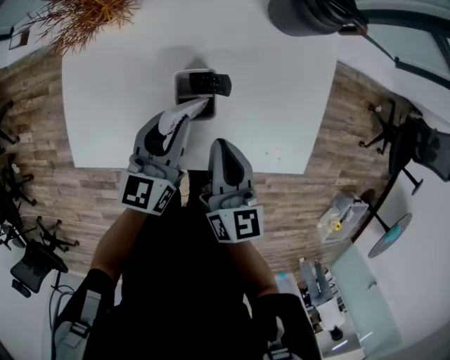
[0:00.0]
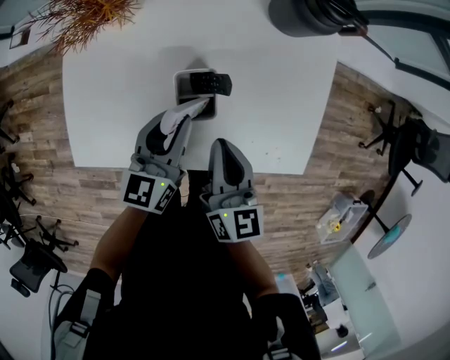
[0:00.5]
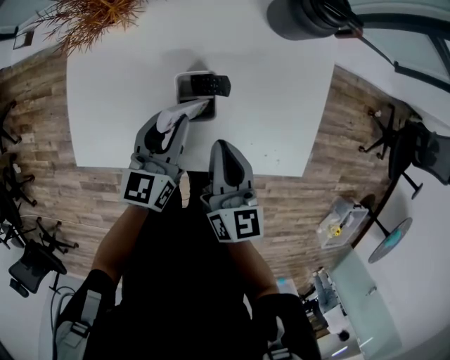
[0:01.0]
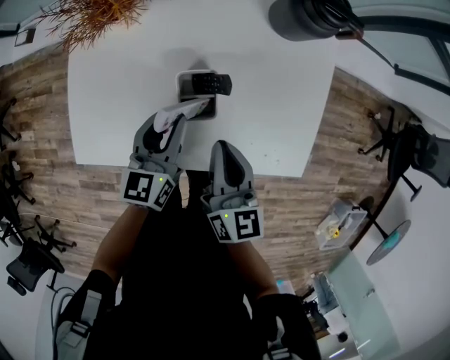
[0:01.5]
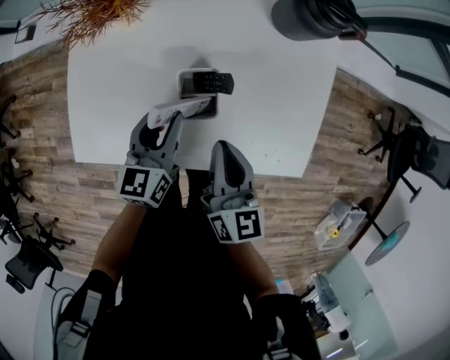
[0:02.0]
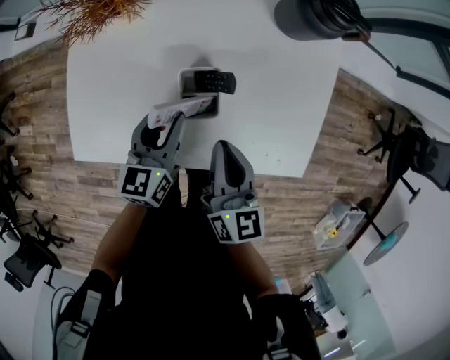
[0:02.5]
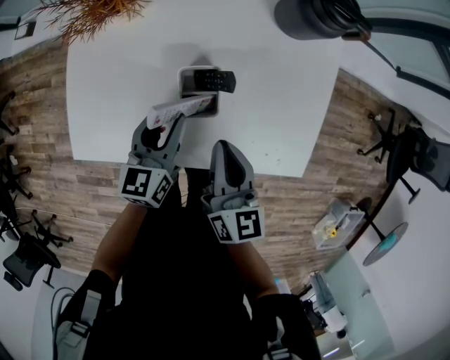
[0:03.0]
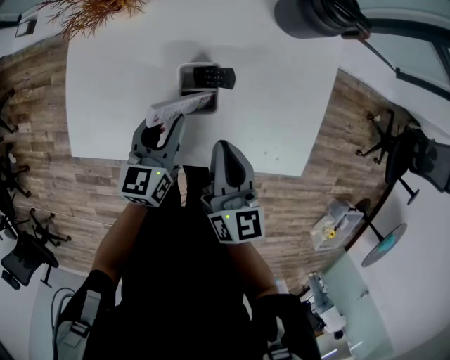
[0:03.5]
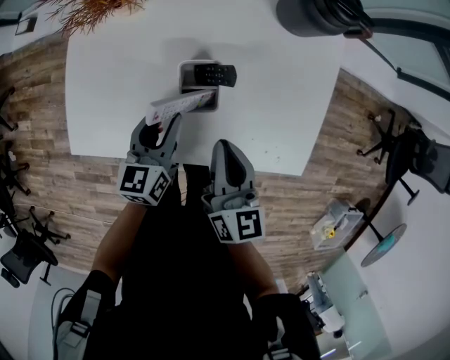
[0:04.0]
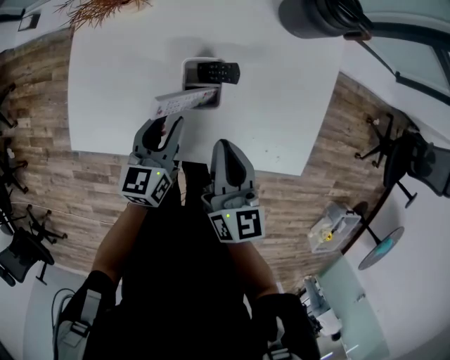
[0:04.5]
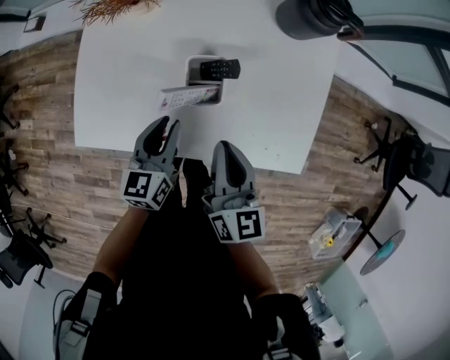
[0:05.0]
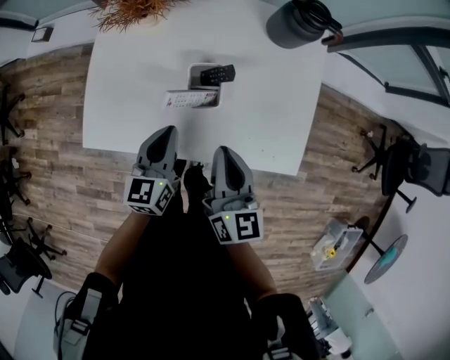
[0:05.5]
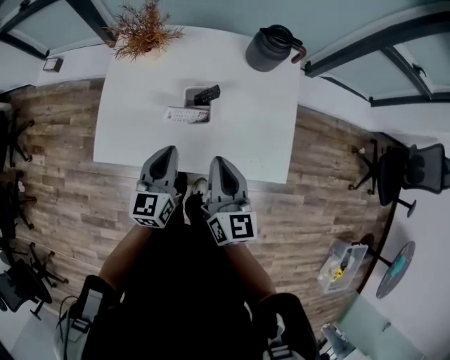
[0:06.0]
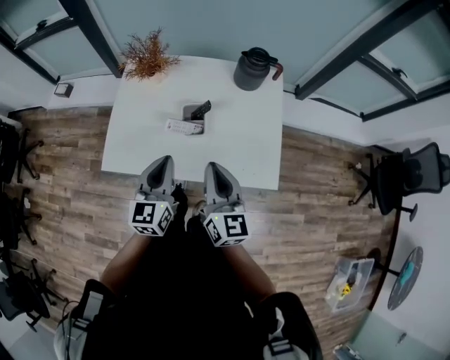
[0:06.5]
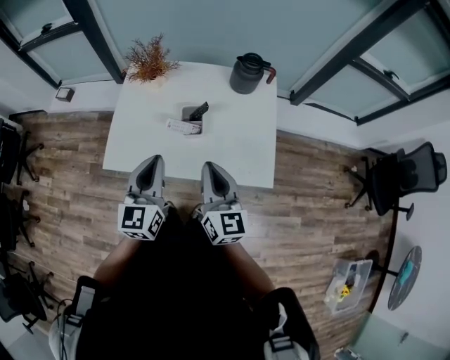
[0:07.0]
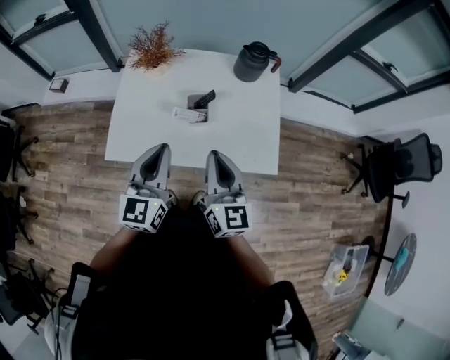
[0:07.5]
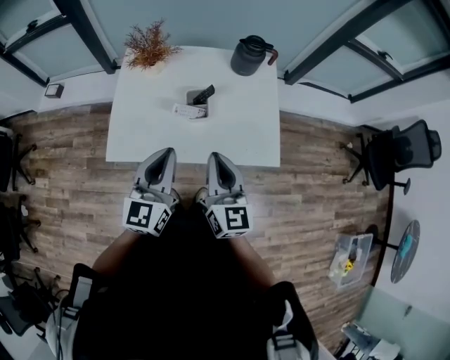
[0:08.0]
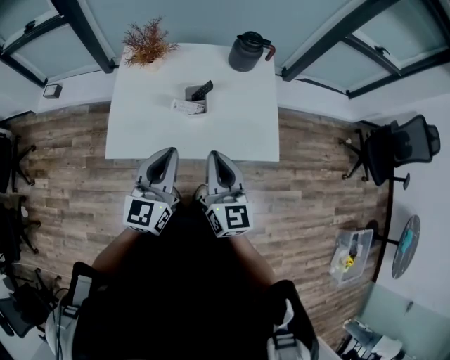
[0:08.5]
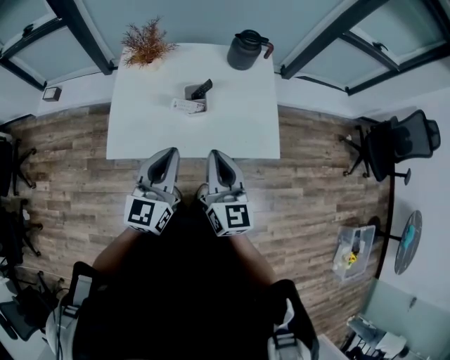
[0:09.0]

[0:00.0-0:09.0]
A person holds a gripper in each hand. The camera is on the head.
0:00.0 to 0:02.0: The grippers stay close to where they were, moving slightly.
0:02.0 to 0:04.5: The left gripper moves some 5 cm.
0:04.5 to 0:07.0: Both grippers move upward and backward, approximately 25 cm. The left gripper turns by some 30 degrees, and closes its fingers, while the right gripper changes its angle by about 20 degrees.
0:07.0 to 0:09.0: The right gripper ends up some 5 cm from where it was.

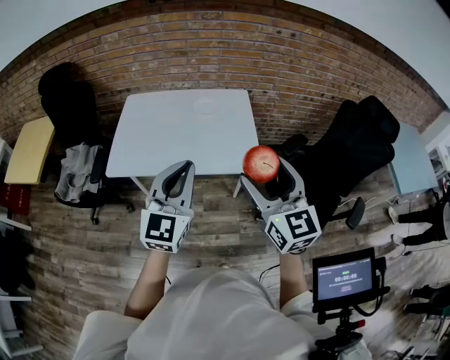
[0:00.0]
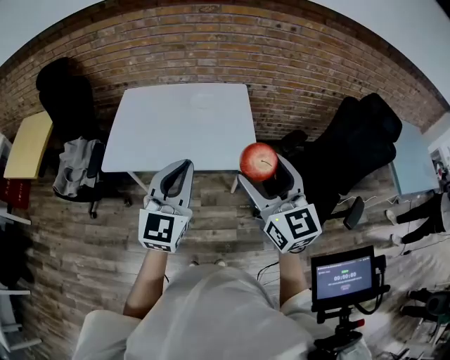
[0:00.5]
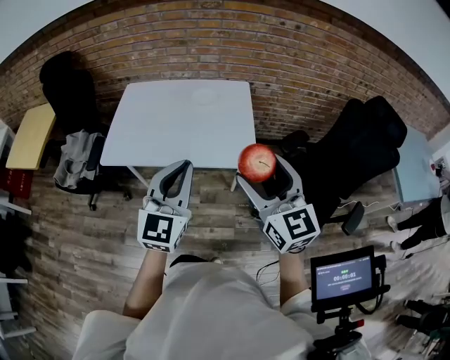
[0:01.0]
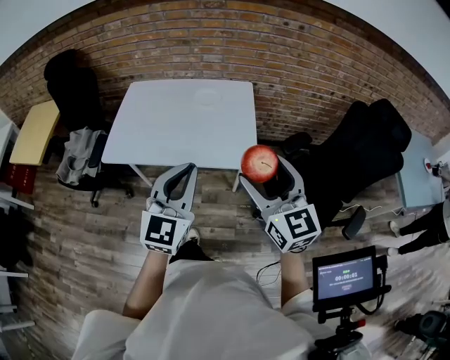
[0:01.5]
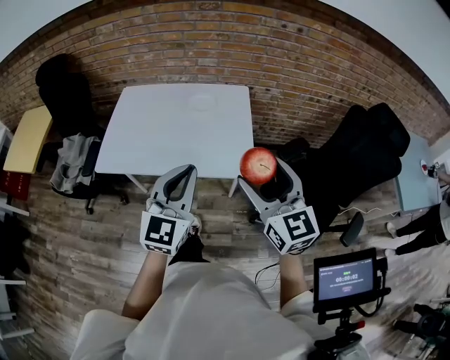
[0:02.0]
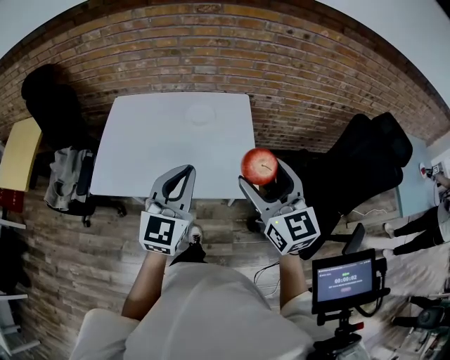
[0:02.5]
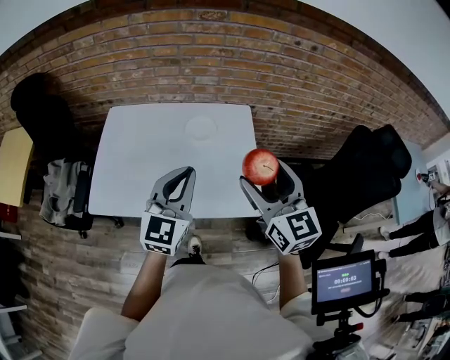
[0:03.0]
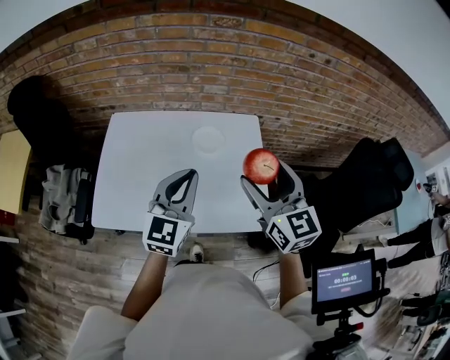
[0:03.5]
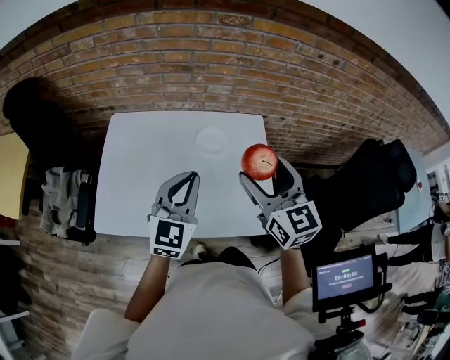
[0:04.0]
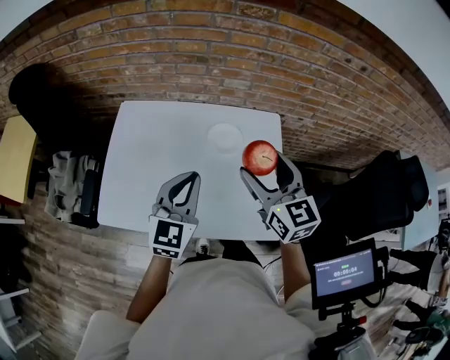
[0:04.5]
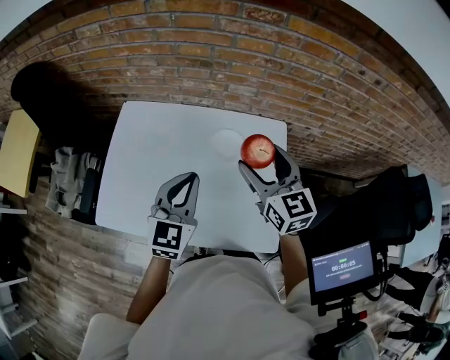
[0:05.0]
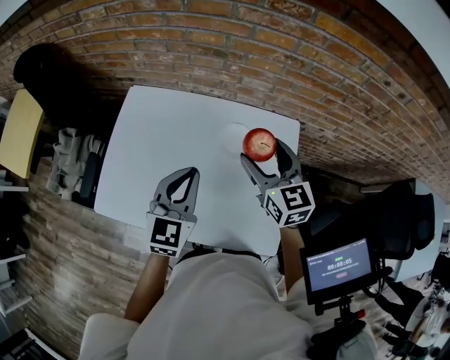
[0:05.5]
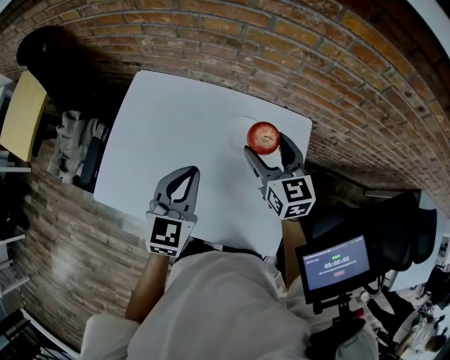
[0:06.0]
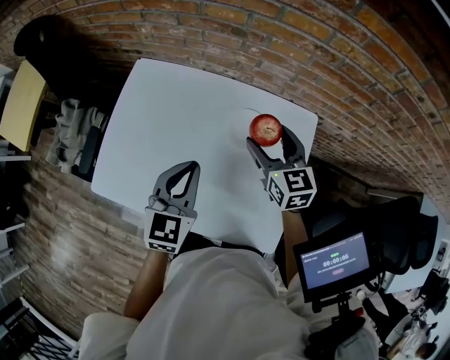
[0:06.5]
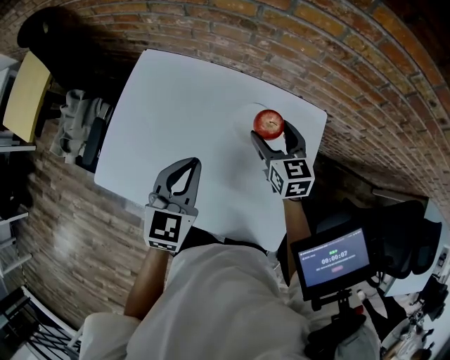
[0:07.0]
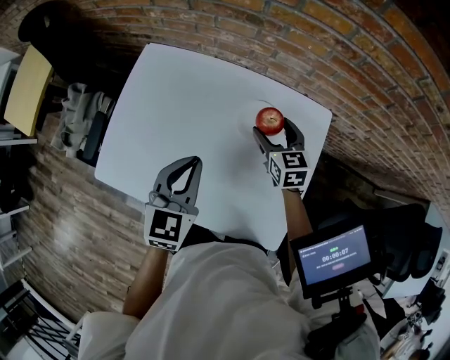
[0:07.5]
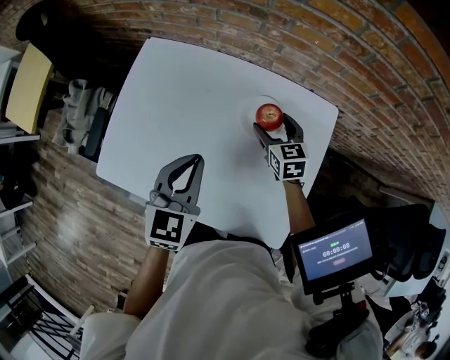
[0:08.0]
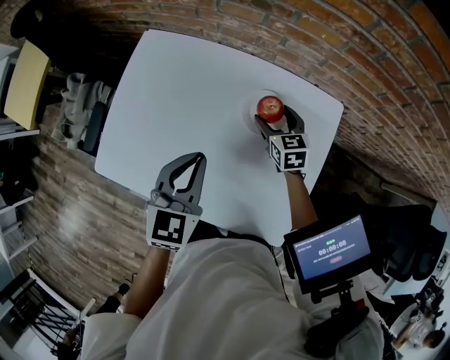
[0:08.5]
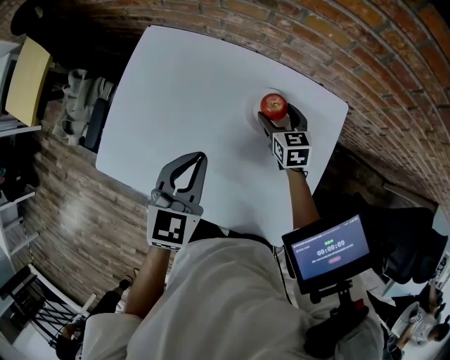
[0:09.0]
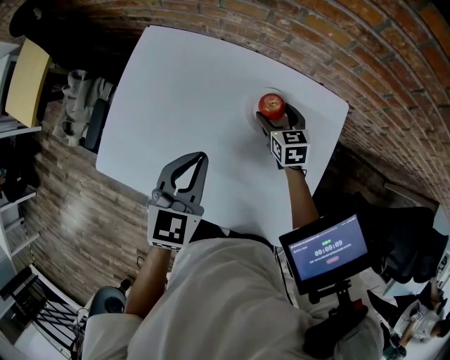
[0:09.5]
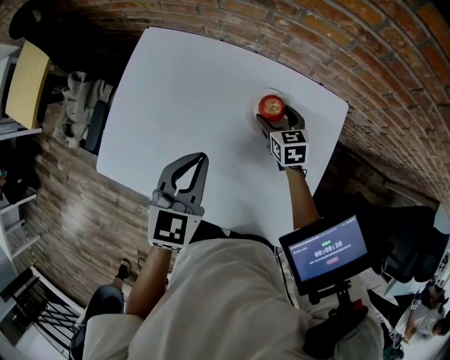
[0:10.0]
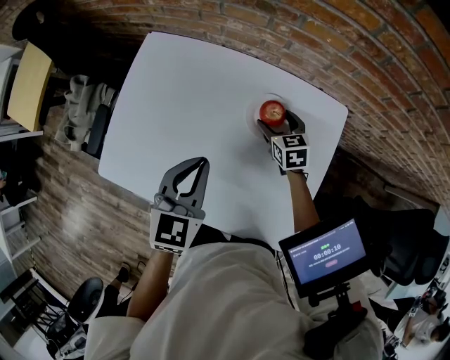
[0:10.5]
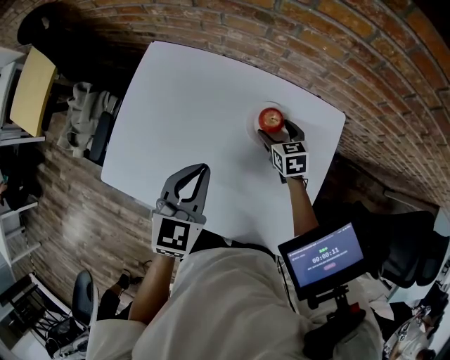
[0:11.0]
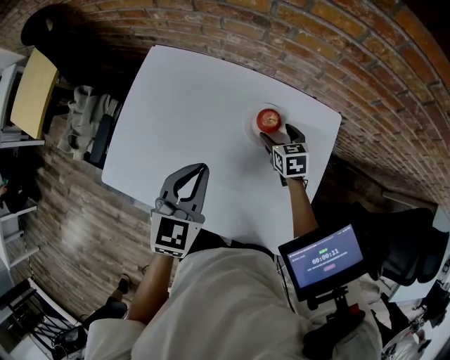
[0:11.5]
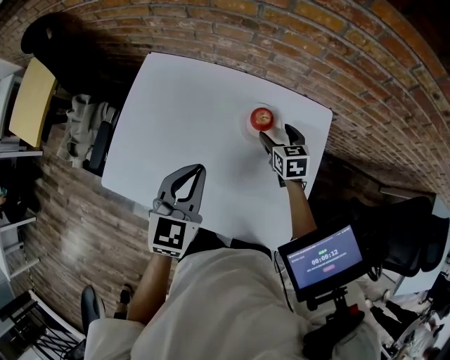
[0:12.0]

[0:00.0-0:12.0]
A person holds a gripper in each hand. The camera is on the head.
0:00.0 to 0:02.0: The right gripper moves forward and to the right, roughly 10 cm, while the left gripper goes roughly 5 cm to the right.
0:02.0 to 0:04.0: Both grippers travel together forward, roughly 30 cm.
0:04.0 to 0:06.0: The right gripper travels forward and downward by approximately 25 cm. The left gripper shifts roughly 10 cm forward and downward, and changes its angle by roughly 20 degrees.
0:06.0 to 0:08.0: The right gripper heads downward, covering roughly 15 cm.
0:08.0 to 0:10.0: The right gripper goes about 5 cm downward.
0:10.0 to 0:12.0: The right gripper moves about 5 cm.

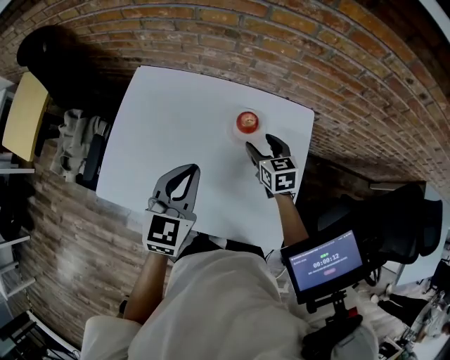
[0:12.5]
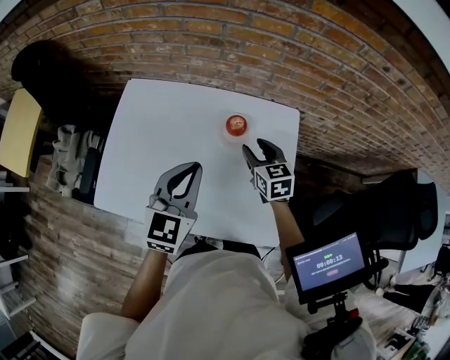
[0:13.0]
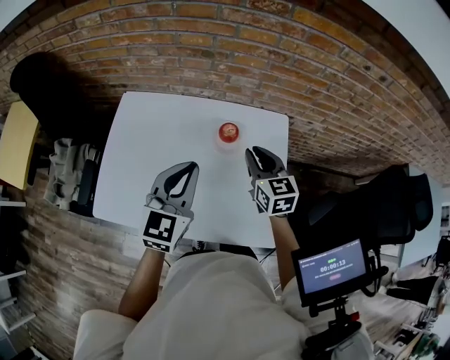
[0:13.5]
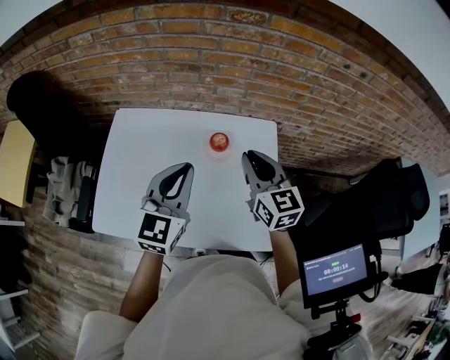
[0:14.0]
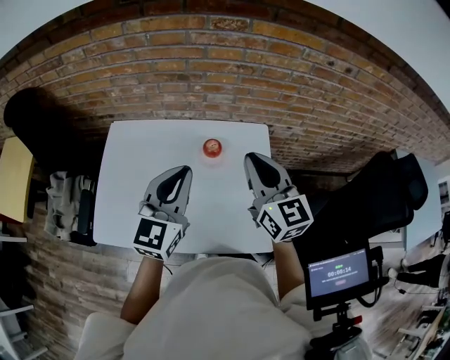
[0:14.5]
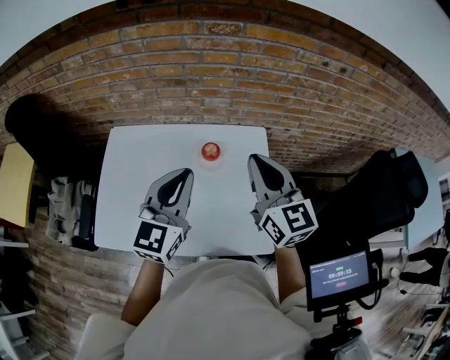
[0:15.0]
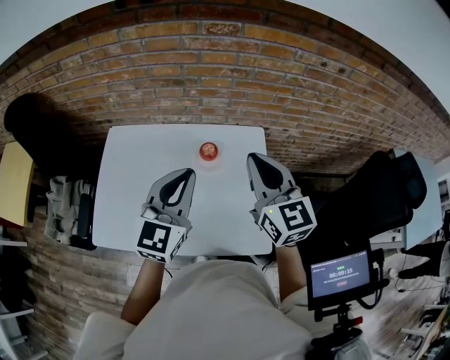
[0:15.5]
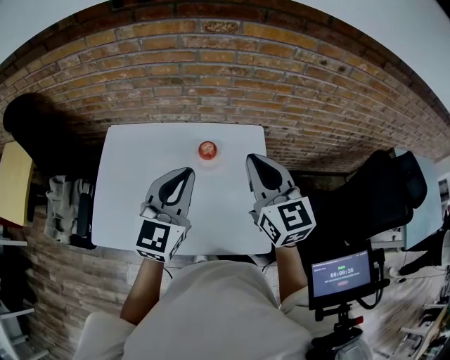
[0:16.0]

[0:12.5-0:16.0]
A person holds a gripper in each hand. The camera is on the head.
0:12.5 to 0:14.5: The right gripper heads upward and backward, covering roughly 30 cm, tilts its fingers about 30 degrees upward, and closes its fingers; the left gripper is displaced upward by roughly 10 cm, and rotates roughly 20 degrees.
0:14.5 to 0:16.0: The grippers stay close to where they were, moving slightly.

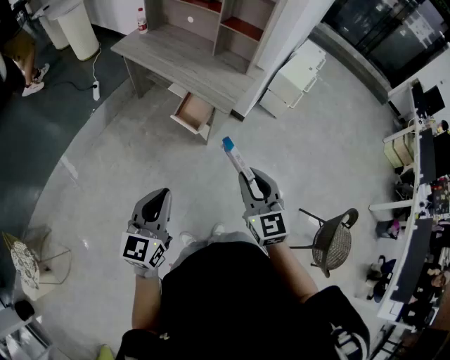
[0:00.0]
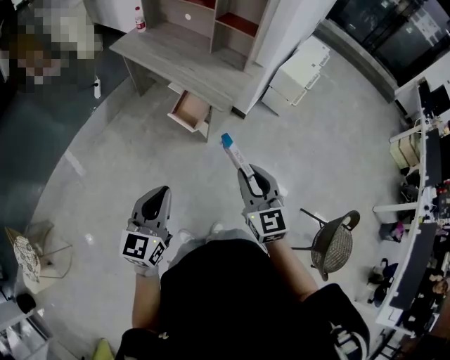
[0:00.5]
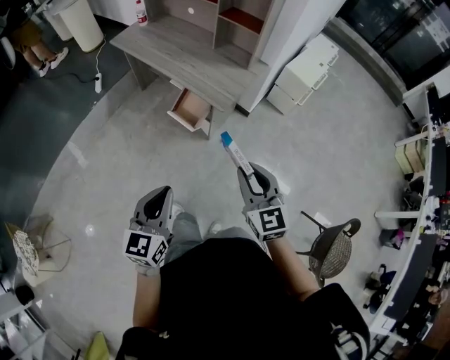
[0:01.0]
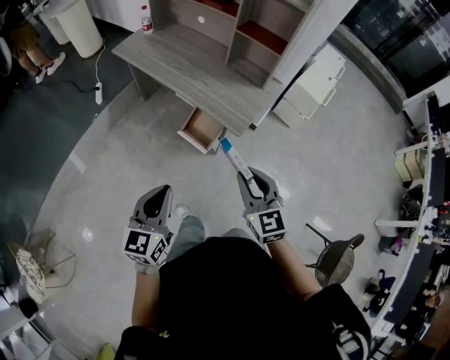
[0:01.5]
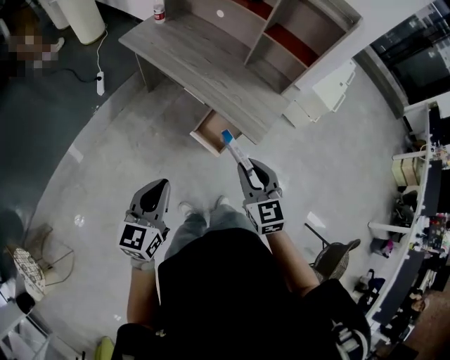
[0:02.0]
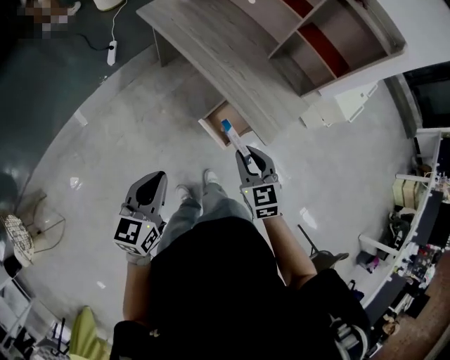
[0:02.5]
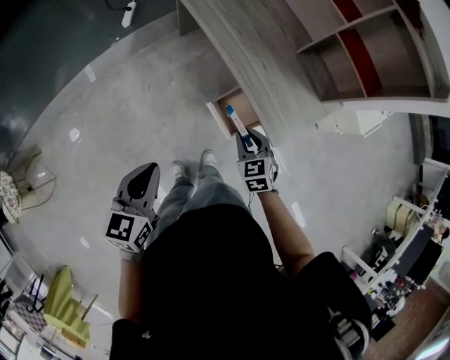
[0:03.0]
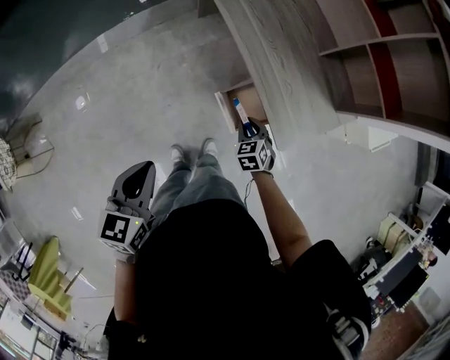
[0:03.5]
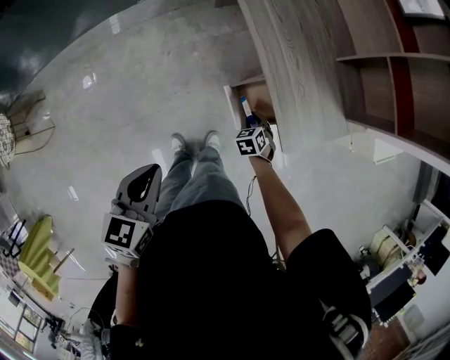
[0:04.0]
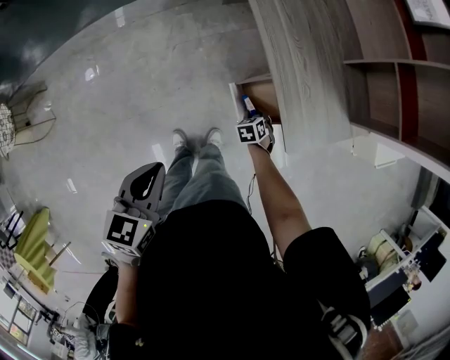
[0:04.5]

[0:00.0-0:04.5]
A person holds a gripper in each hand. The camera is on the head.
0:00.0 to 0:02.0: The two grippers go roughly 25 cm forward and to the left.
0:02.0 to 0:04.5: The left gripper travels downward by some 10 cm, and changes its angle by about 40 degrees; the right gripper is displaced downward by roughly 40 cm, and tips its fingers downward by roughly 50 degrees.
